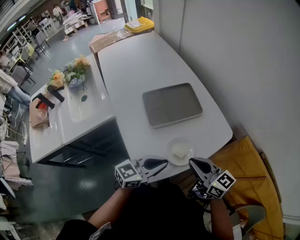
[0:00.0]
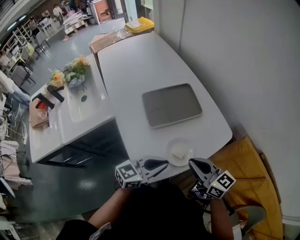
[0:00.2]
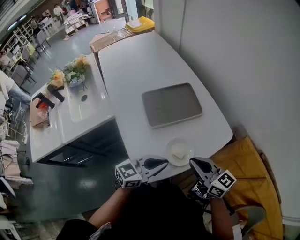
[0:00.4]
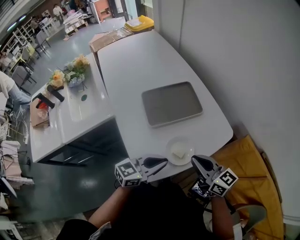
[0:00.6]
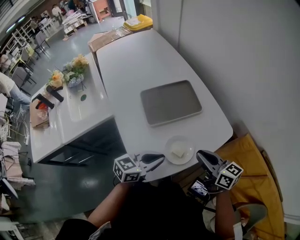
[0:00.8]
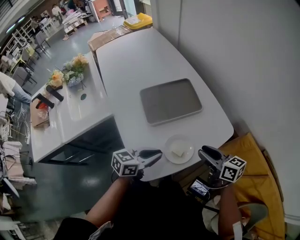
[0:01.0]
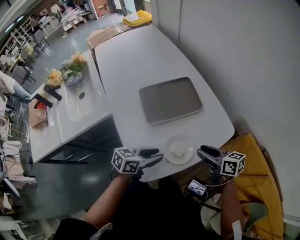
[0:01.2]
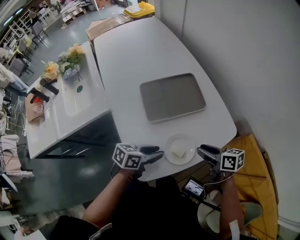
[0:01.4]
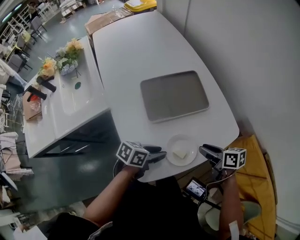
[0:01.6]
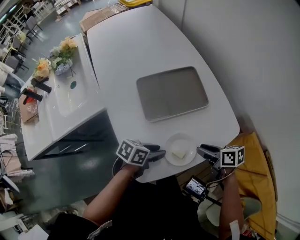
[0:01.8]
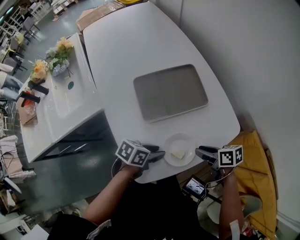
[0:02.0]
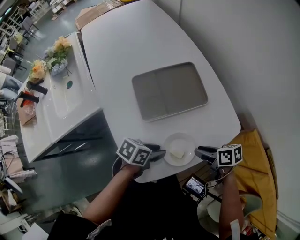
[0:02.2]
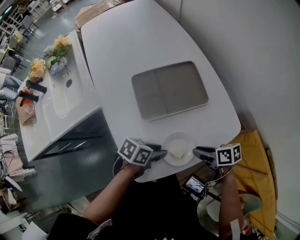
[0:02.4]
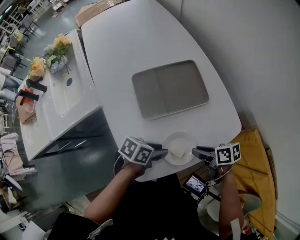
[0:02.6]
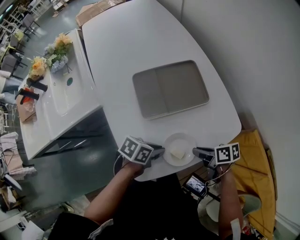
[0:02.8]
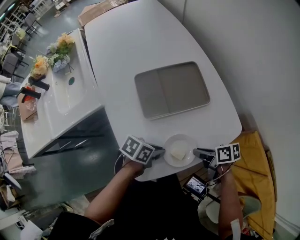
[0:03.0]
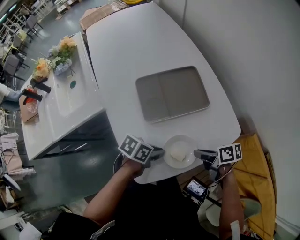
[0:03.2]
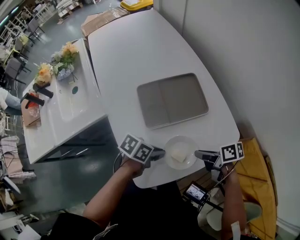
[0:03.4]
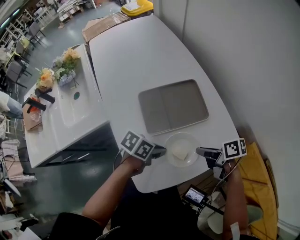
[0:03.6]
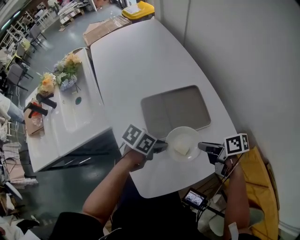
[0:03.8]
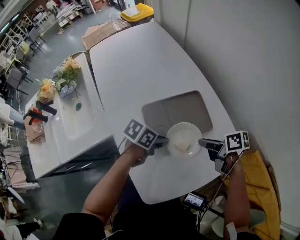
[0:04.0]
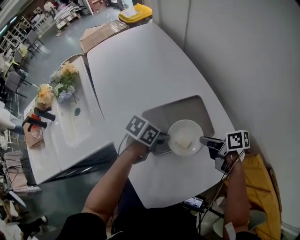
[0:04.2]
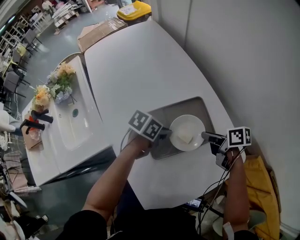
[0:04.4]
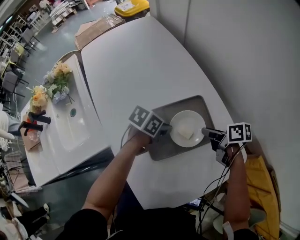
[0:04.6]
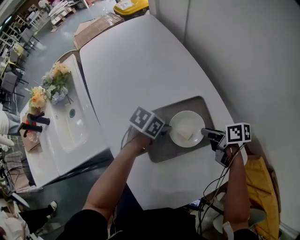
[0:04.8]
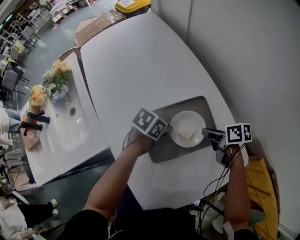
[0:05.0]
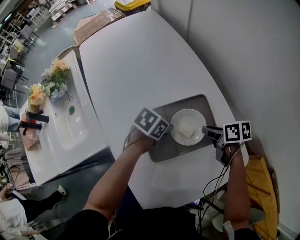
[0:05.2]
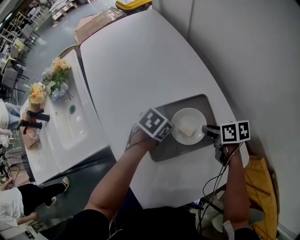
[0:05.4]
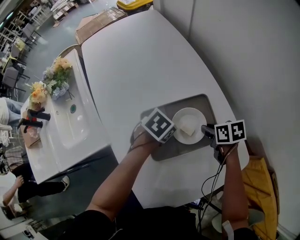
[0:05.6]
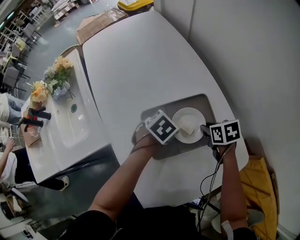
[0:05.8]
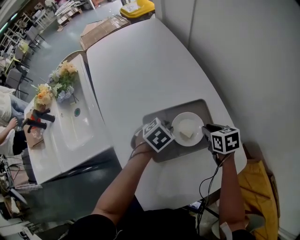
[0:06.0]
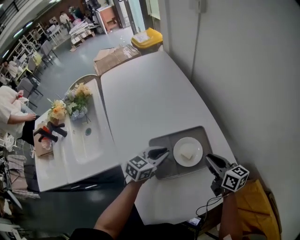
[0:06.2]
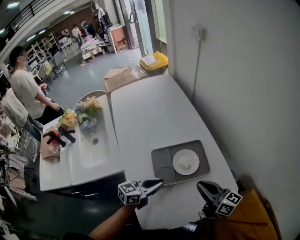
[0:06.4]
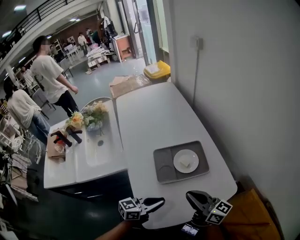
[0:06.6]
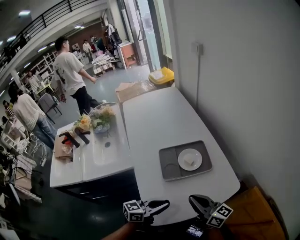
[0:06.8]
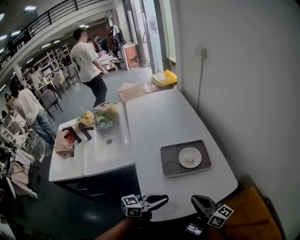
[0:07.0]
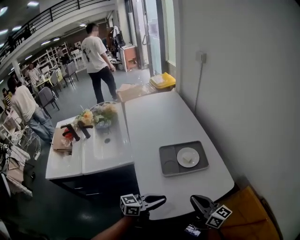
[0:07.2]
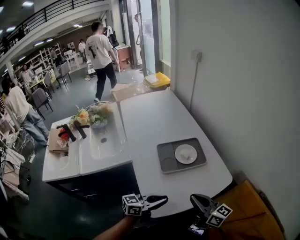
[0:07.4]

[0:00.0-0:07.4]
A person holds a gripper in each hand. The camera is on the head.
0:00.0 to 0:01.4: The left gripper heads downward, covering about 10 cm, swivels approximately 40 degrees, and opens; the right gripper shifts about 15 cm downward, forward and to the right, swivels roughly 40 degrees, and opens.
0:01.4 to 0:03.0: Both grippers travel together downward, about 5 cm. The left gripper rotates about 20 degrees; the right gripper changes its angle by approximately 30 degrees, and closes its fingers.
0:03.0 to 0:04.4: The right gripper shifts by approximately 25 cm. The left gripper ends up roughly 25 cm from where it was.
0:04.4 to 0:06.0: The left gripper moves about 5 cm, and rotates roughly 40 degrees; the right gripper shifts by some 5 cm, and turns by roughly 40 degrees.
0:06.0 to 0:07.4: Both grippers travel together backward and upward, roughly 40 cm. The right gripper tips its fingers upward by about 60 degrees. Meanwhile the left gripper angles its fingers upward, by about 60 degrees.

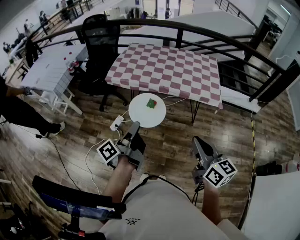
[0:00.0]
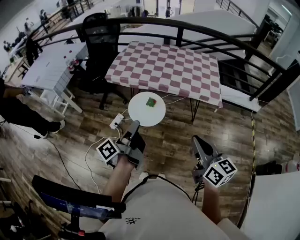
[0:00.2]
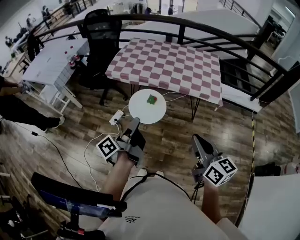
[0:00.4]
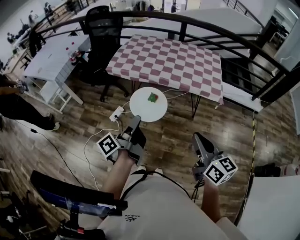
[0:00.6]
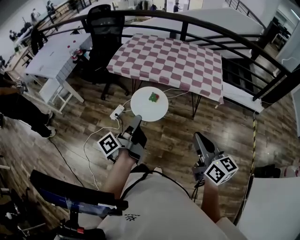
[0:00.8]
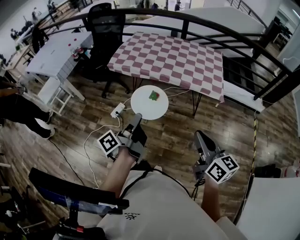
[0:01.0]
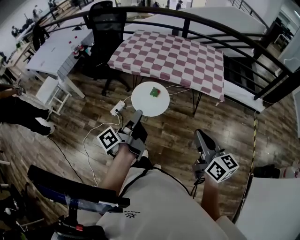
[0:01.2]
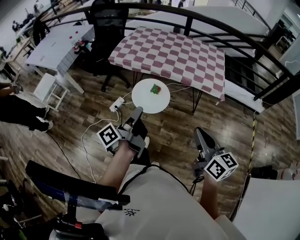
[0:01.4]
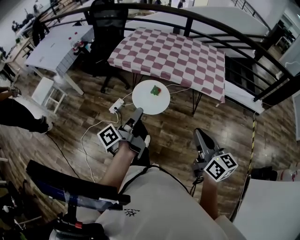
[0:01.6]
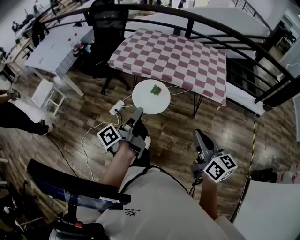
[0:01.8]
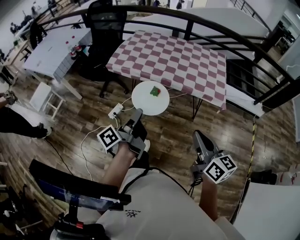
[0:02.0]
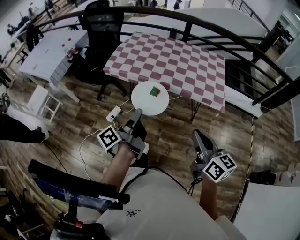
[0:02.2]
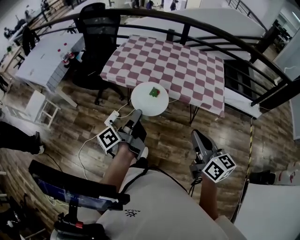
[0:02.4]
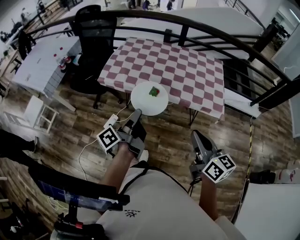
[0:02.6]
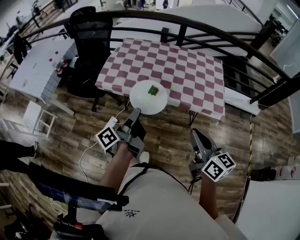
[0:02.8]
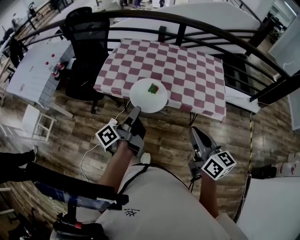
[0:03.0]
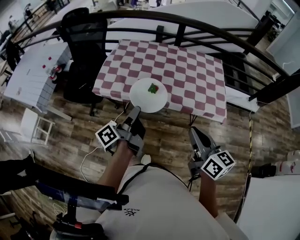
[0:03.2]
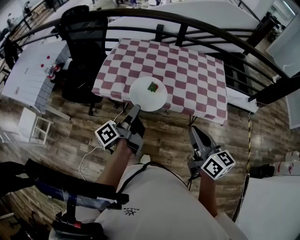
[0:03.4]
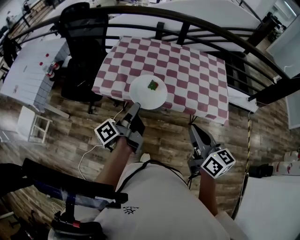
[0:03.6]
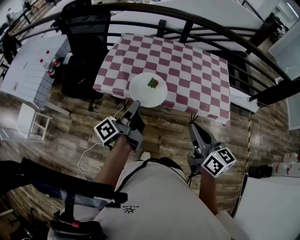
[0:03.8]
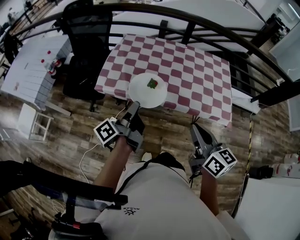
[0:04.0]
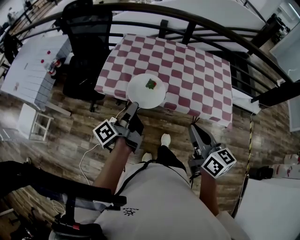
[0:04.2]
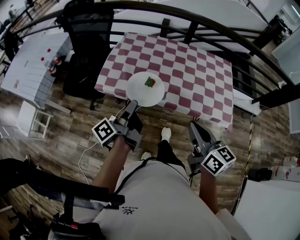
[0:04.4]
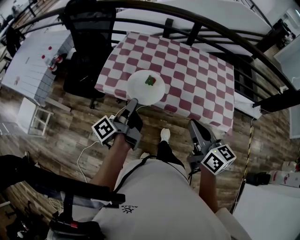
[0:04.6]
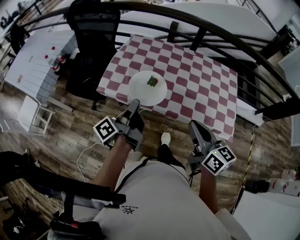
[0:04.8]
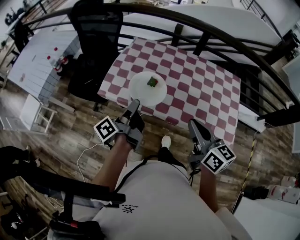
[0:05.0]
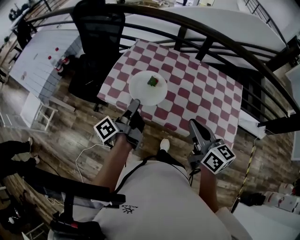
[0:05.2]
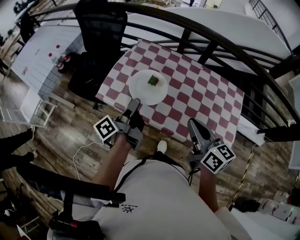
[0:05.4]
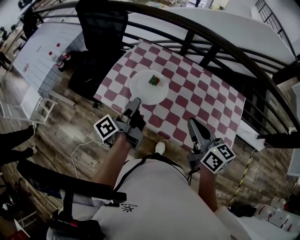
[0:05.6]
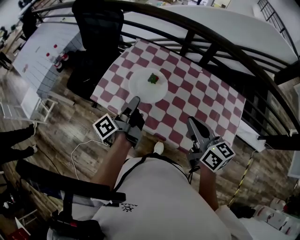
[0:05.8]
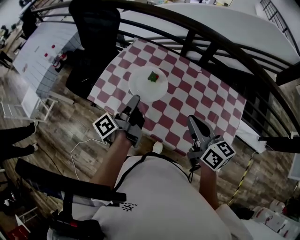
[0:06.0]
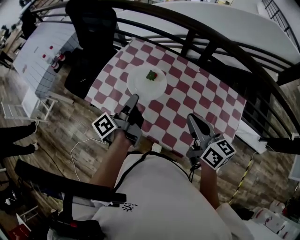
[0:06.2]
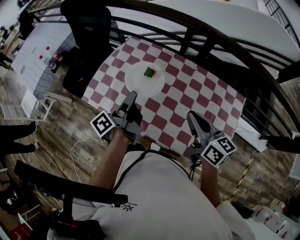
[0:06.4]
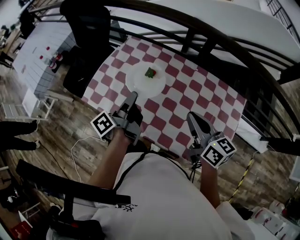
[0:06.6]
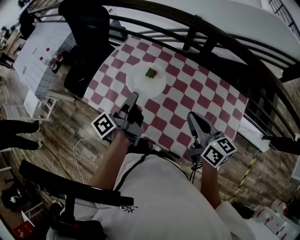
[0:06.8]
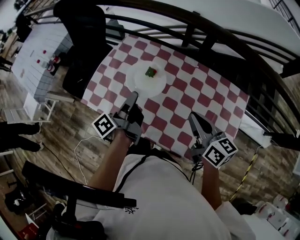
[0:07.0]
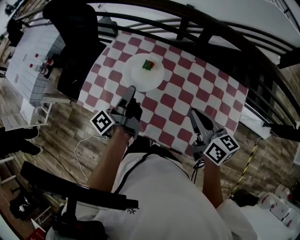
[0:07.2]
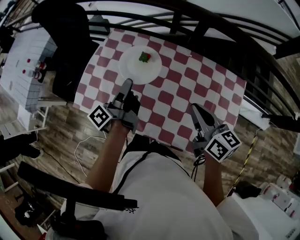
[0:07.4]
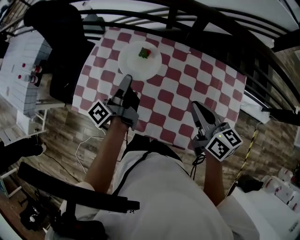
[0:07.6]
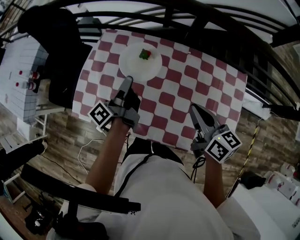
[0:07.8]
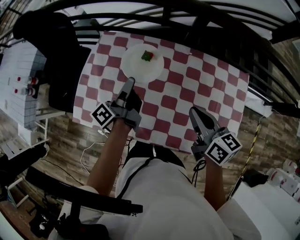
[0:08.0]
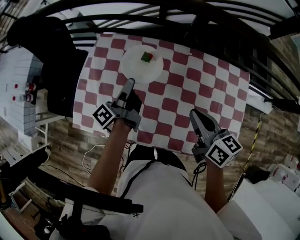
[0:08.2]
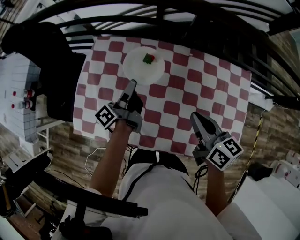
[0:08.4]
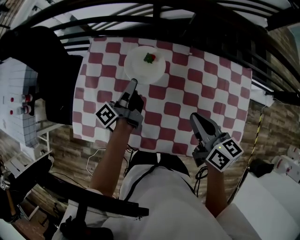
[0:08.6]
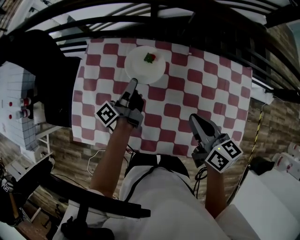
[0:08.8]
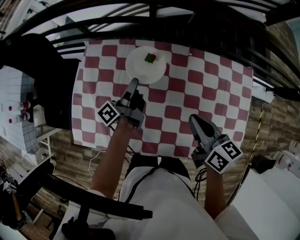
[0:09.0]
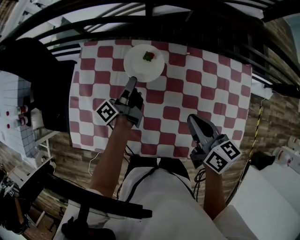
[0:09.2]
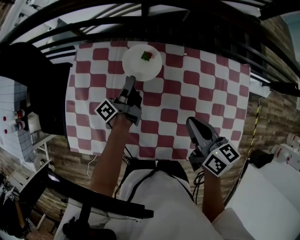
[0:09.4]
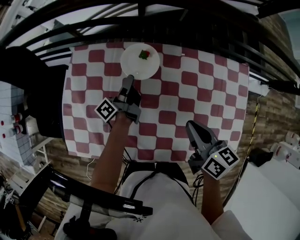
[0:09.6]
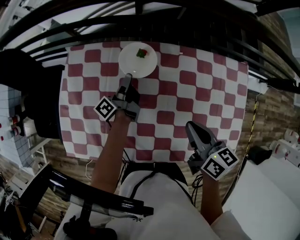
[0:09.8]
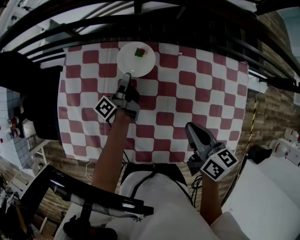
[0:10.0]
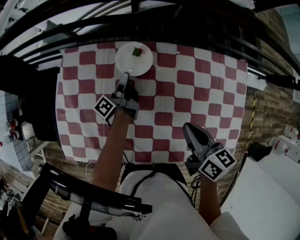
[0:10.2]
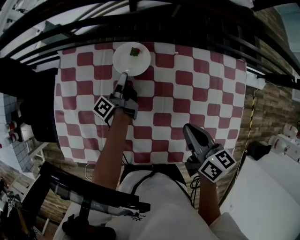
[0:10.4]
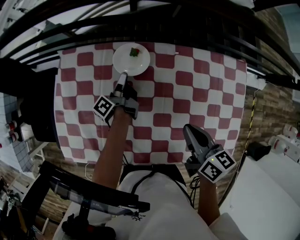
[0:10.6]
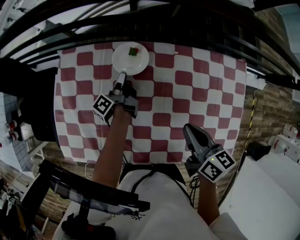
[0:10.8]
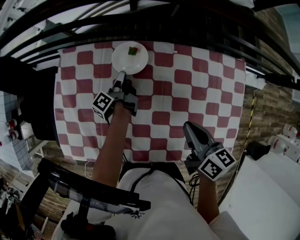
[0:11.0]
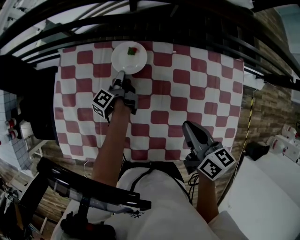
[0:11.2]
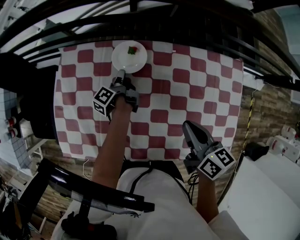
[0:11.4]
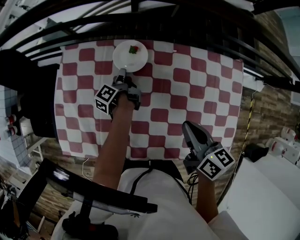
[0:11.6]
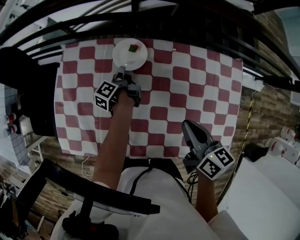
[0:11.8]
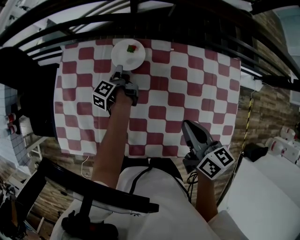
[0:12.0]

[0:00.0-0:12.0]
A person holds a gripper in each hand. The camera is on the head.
0:00.0 to 0:01.6: The right gripper shifts by about 5 cm.
0:01.6 to 0:03.0: The right gripper shifts by approximately 25 cm.
0:03.0 to 0:04.4: The right gripper changes place by some 15 cm.
0:04.4 to 0:06.0: The right gripper shifts by roughly 30 cm.
0:06.0 to 0:07.6: The right gripper shifts by roughly 15 cm.
0:07.6 to 0:09.0: The right gripper goes about 10 cm downward.
0:09.0 to 0:10.4: The right gripper ends up roughly 5 cm from where it was.

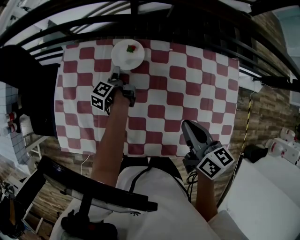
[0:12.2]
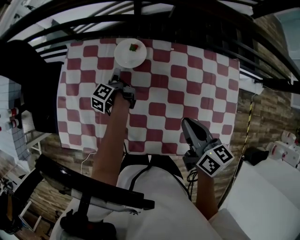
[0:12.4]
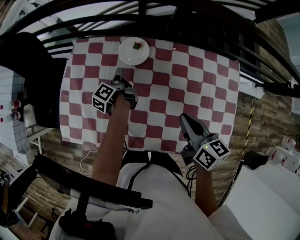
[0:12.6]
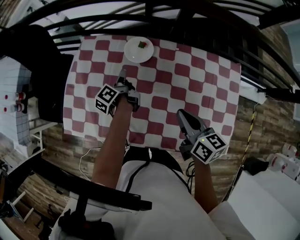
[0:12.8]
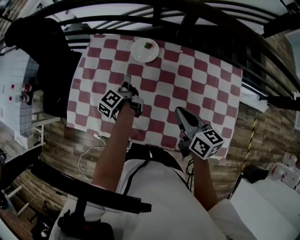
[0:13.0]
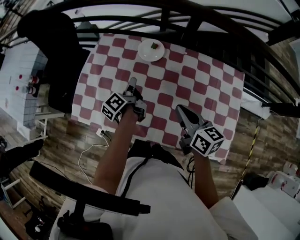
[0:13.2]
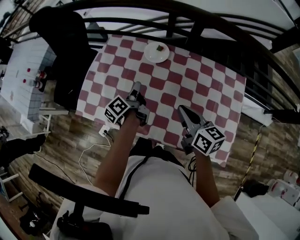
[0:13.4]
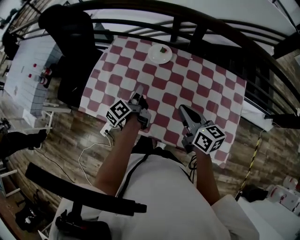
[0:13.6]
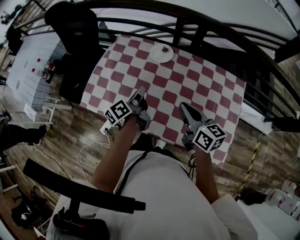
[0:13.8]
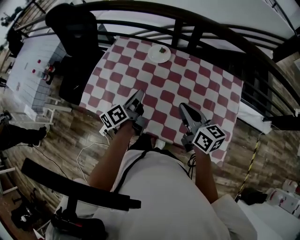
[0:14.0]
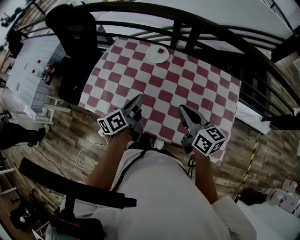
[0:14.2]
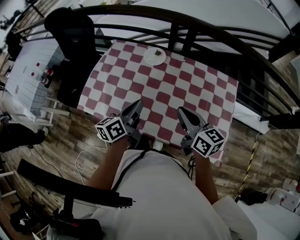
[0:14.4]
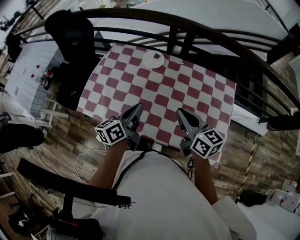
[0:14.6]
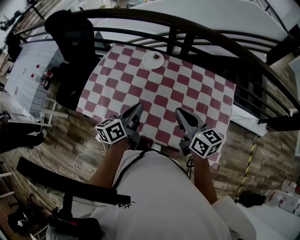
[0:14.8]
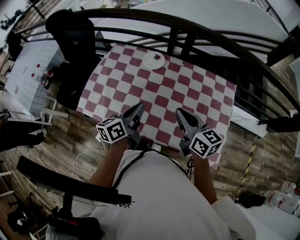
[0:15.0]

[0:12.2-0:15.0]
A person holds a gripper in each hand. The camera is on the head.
0:12.2 to 0:13.6: The right gripper changes place by roughly 10 cm, and changes its angle by roughly 20 degrees.
0:13.6 to 0:15.0: The right gripper travels upward by roughly 5 cm.

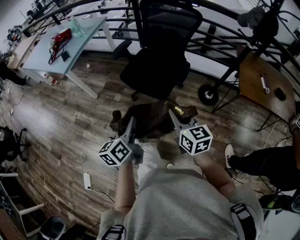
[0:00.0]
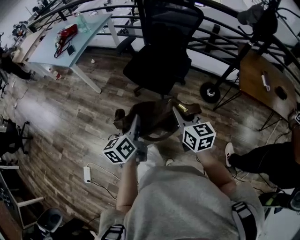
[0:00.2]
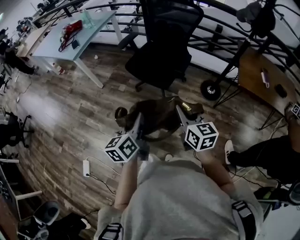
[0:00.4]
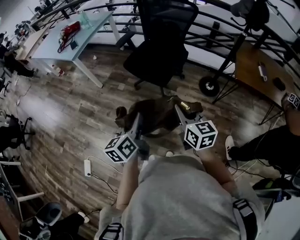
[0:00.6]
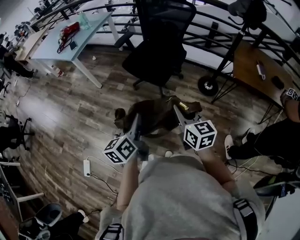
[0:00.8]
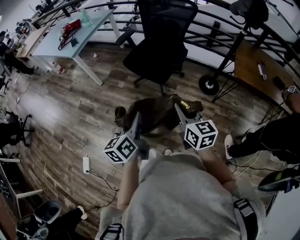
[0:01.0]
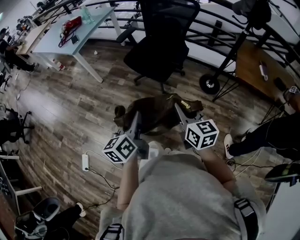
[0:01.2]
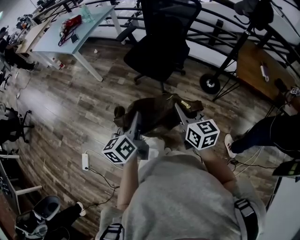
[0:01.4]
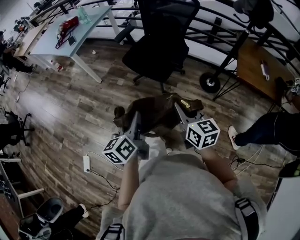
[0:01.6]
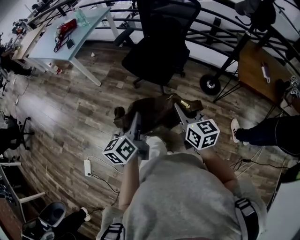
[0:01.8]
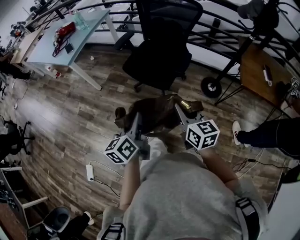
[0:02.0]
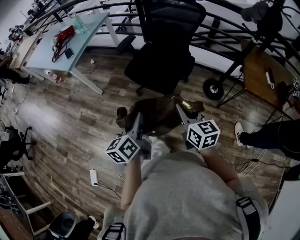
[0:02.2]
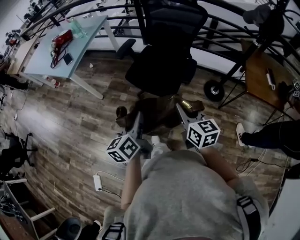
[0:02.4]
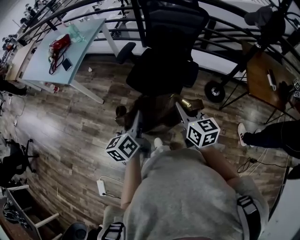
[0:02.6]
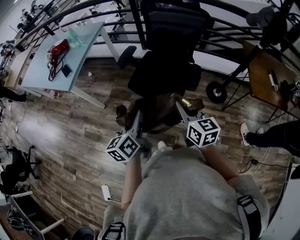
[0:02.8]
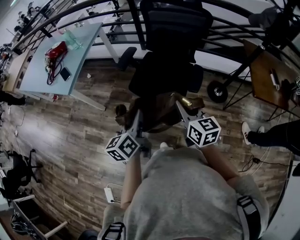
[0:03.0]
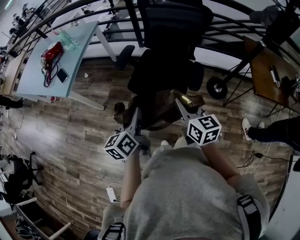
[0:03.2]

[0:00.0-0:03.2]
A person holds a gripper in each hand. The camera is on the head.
0:00.0 to 0:01.6: The two grippers go some 10 cm backward.
0:01.6 to 0:03.2: The left gripper shifts some 30 cm forward, while the right gripper goes some 30 cm forward and to the left.
